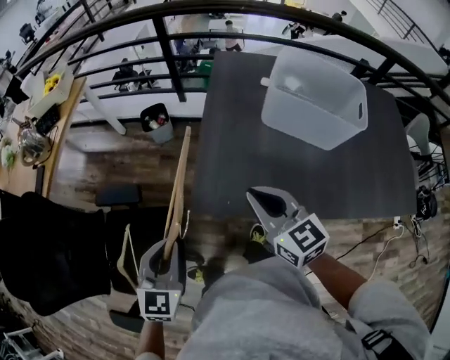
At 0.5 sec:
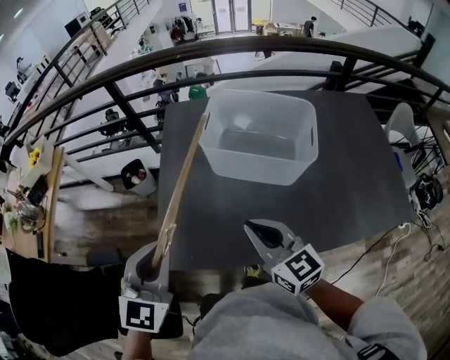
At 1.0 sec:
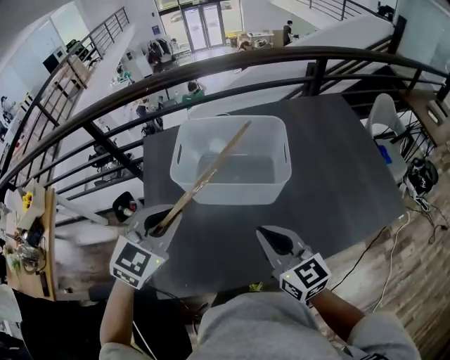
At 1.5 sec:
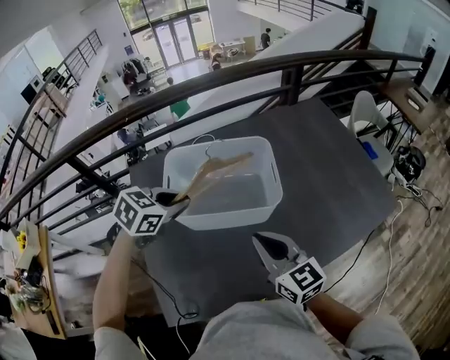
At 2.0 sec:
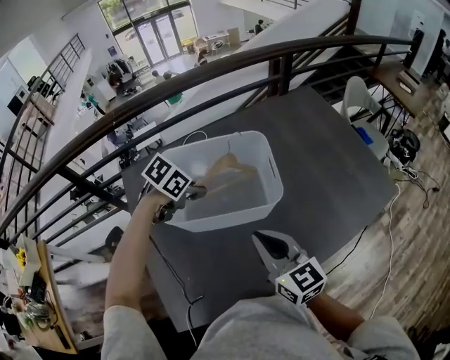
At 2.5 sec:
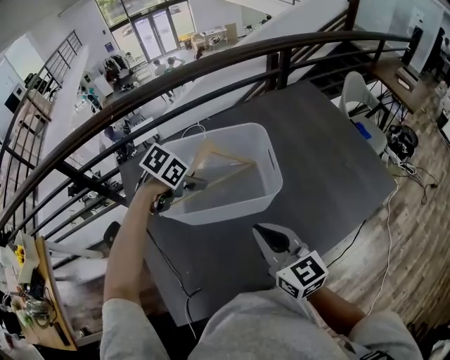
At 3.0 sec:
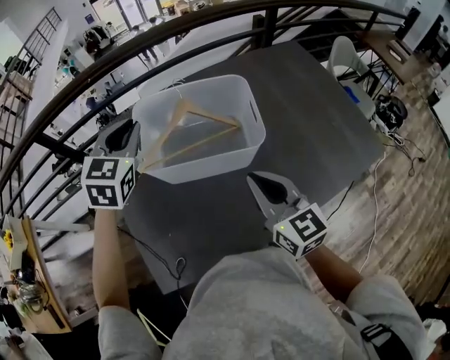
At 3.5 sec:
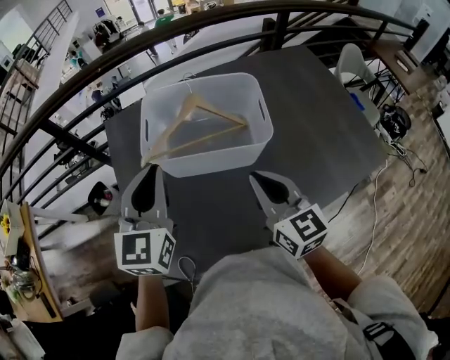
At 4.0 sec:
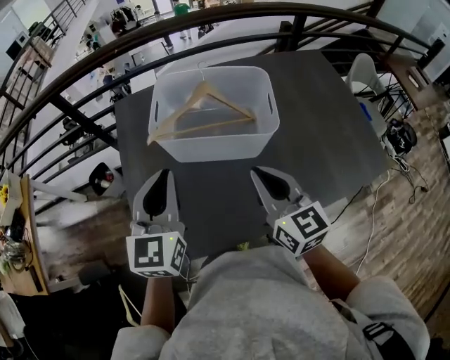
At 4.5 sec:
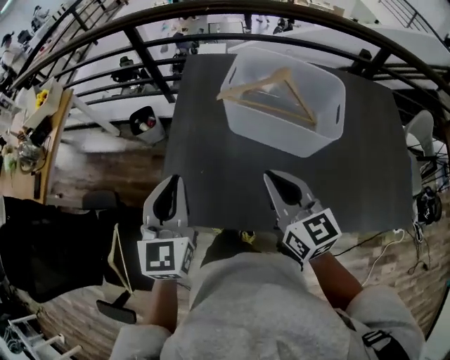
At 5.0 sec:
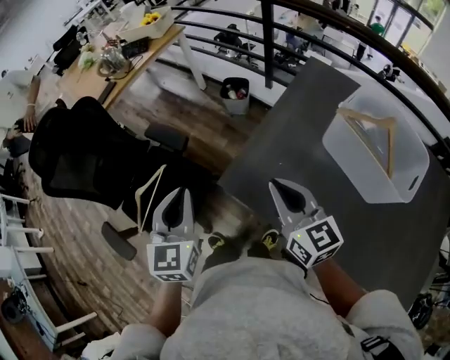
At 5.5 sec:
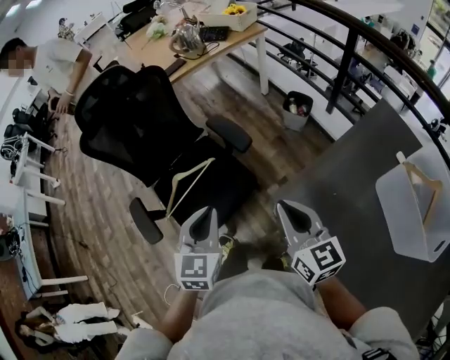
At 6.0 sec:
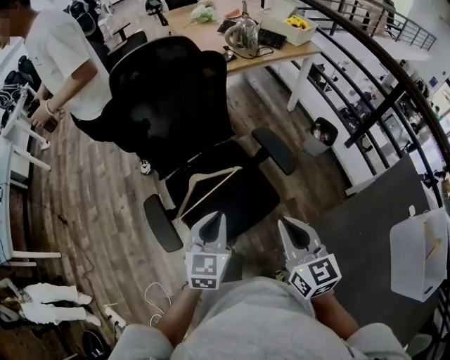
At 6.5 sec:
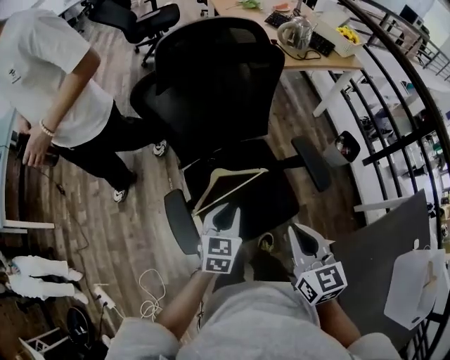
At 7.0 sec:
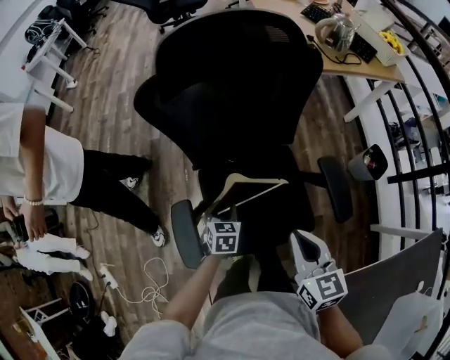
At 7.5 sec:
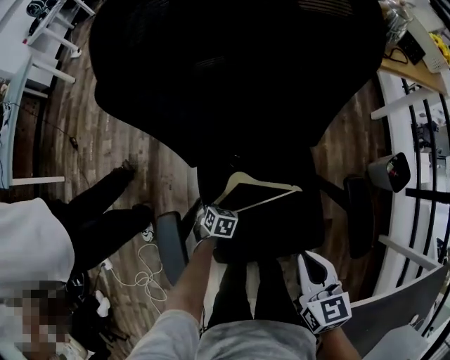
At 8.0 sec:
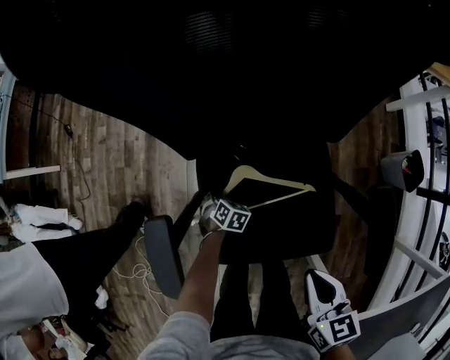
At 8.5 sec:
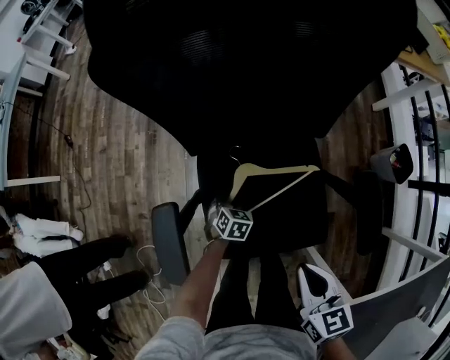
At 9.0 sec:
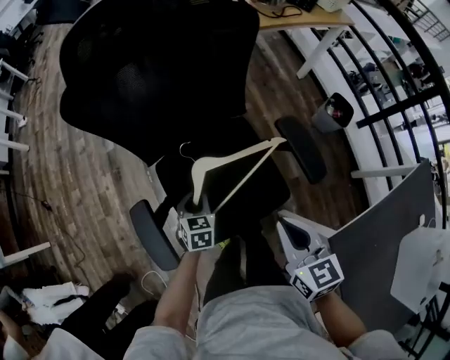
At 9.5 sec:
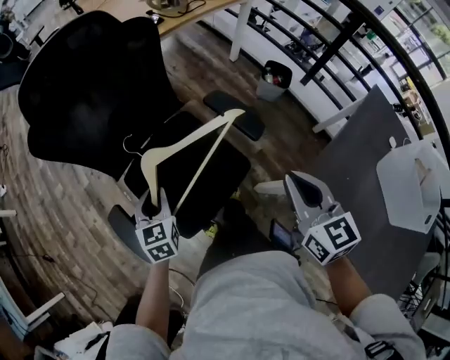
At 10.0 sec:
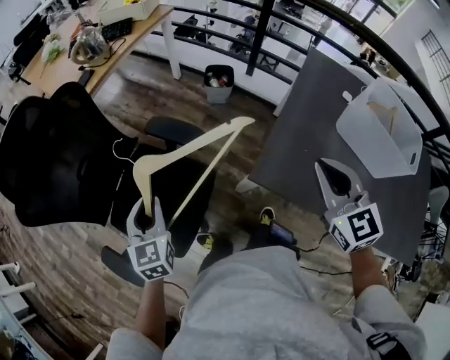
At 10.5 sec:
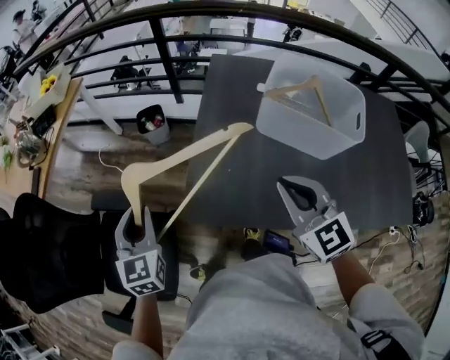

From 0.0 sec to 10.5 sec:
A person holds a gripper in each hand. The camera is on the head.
From 0.0 sec to 2.0 sec: The left gripper travels upward and back again, some 10 cm each way, and tilts its fingers roughly 30 degrees downward; the right gripper shifts by some 35 cm, and swivels approximately 40 degrees.
From 2.0 sec to 4.0 sec: The left gripper moves approximately 25 cm, tips its fingers upward by roughly 50 degrees, and opens, then closes once more.
From 4.0 sec to 6.5 sec: The two grippers travel together, about 80 cm. The right gripper rotates roughly 80 degrees. Meanwhile the left gripper changes its angle by roughly 80 degrees.
From 6.5 sec to 8.5 sec: The right gripper travels downward by roughly 20 cm, and turns by about 20 degrees. The left gripper moves downward, about 35 cm, tilts its fingers roughly 30 degrees downward, and opens, then closes once more.
From 8.5 sec to 10.5 sec: The pair of grippers is taken roughly 60 cm. The right gripper swivels approximately 70 degrees; the left gripper tips its fingers upward by approximately 40 degrees.

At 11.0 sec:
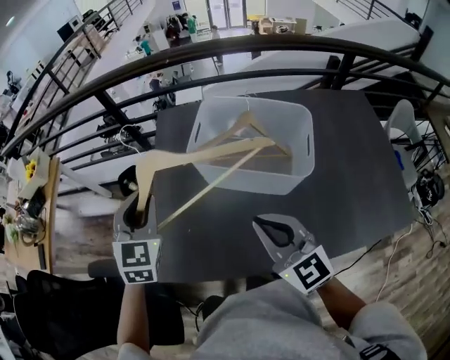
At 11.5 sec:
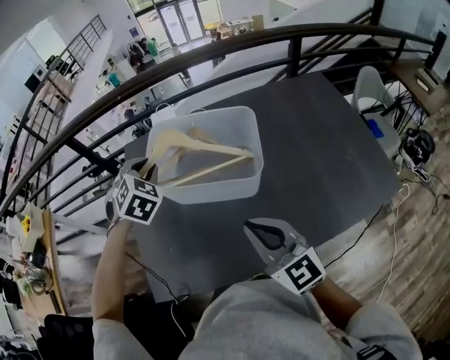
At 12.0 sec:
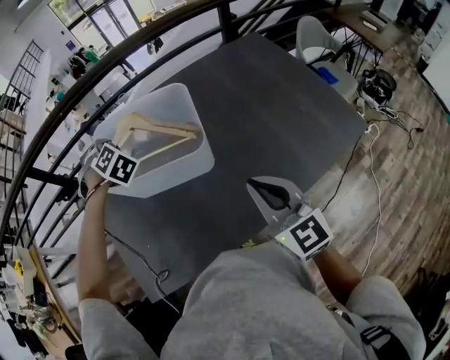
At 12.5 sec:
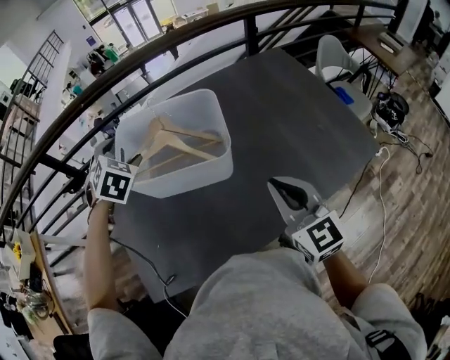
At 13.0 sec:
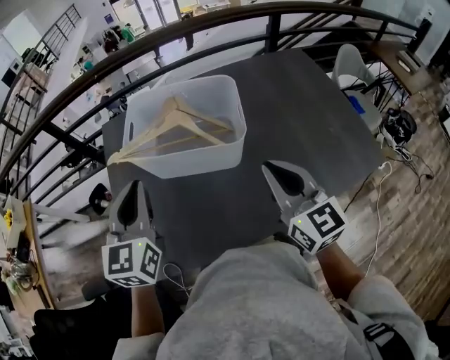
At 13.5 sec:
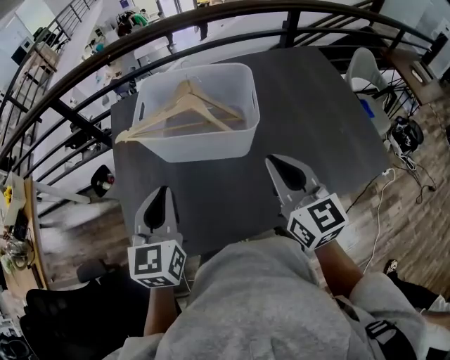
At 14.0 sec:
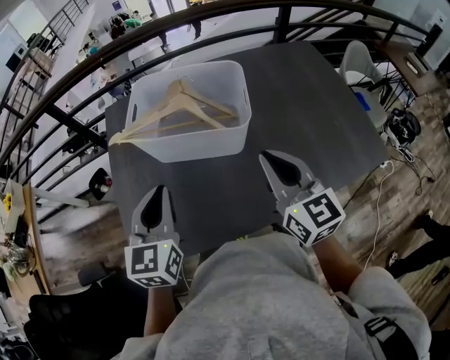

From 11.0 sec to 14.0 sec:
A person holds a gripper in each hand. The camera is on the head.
From 11.0 sec to 12.5 sec: The right gripper is displaced to the right by about 15 cm, and changes its angle by about 30 degrees, while the left gripper shifts roughly 20 cm to the right and forward, swivels roughly 40 degrees, and opens its fingers.
From 12.5 sec to 14.0 sec: The left gripper is displaced backward by roughly 20 cm, rolls counterclockwise, seen from behind, by approximately 50 degrees, and closes its fingers; the right gripper goes roughly 5 cm to the left.

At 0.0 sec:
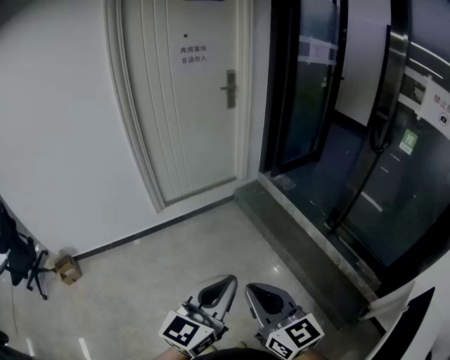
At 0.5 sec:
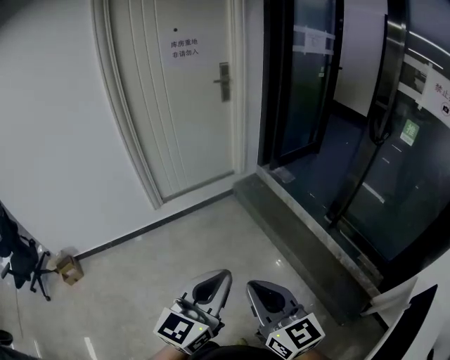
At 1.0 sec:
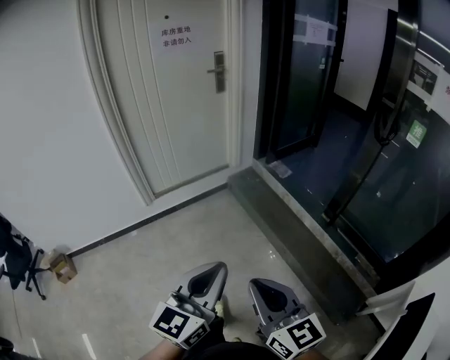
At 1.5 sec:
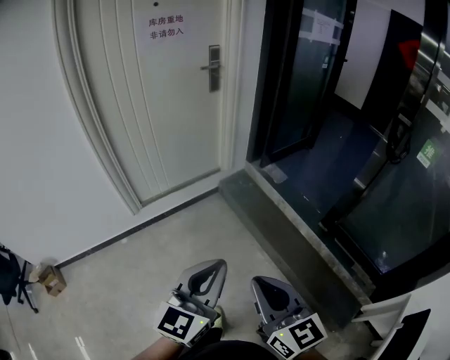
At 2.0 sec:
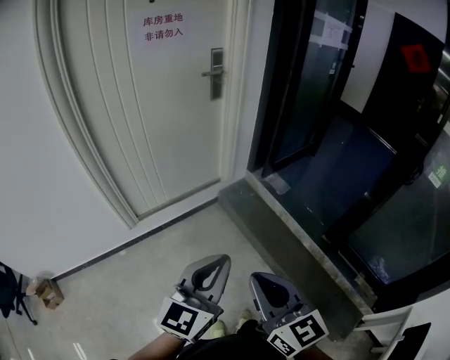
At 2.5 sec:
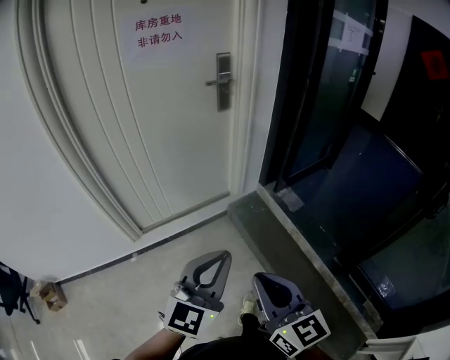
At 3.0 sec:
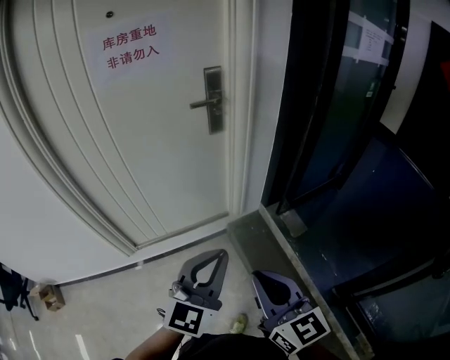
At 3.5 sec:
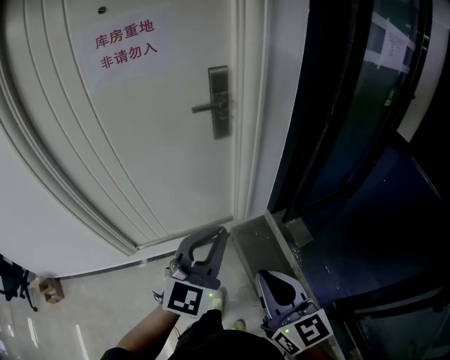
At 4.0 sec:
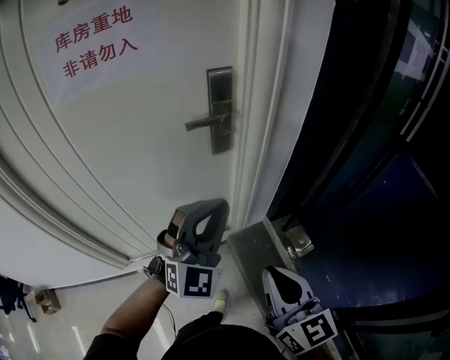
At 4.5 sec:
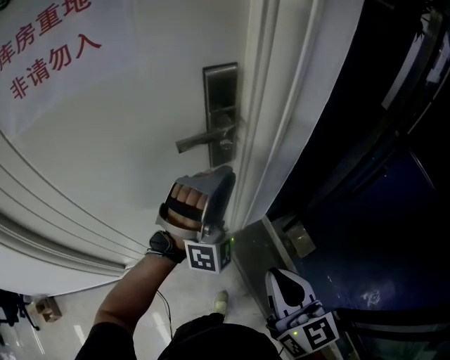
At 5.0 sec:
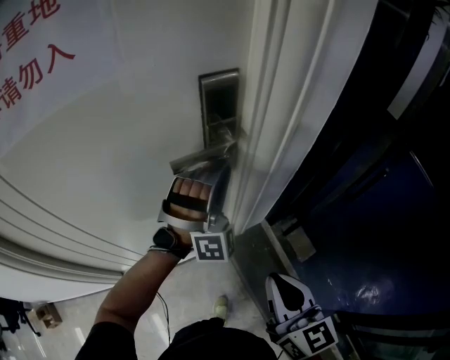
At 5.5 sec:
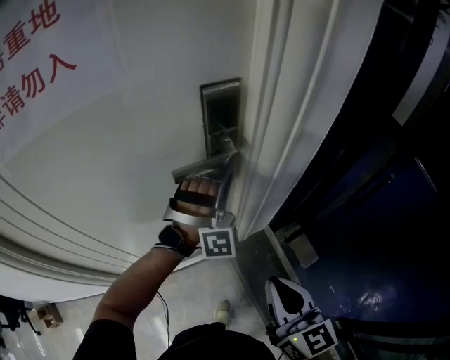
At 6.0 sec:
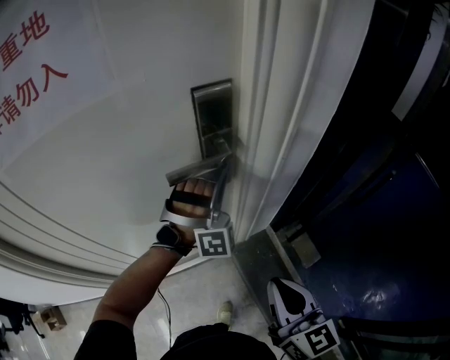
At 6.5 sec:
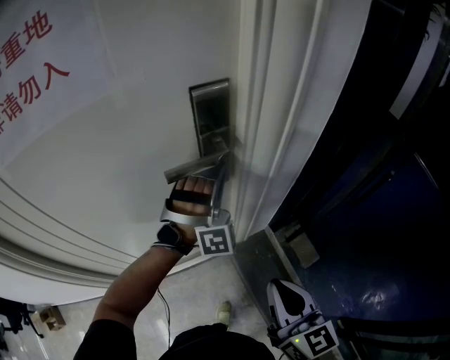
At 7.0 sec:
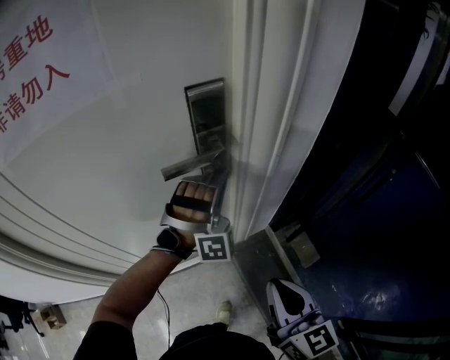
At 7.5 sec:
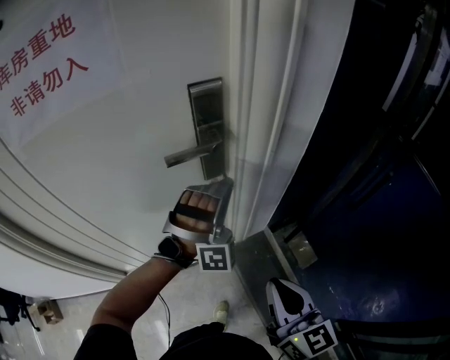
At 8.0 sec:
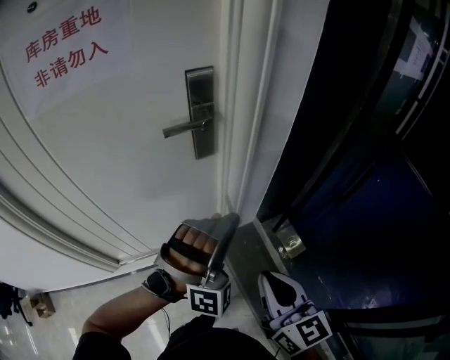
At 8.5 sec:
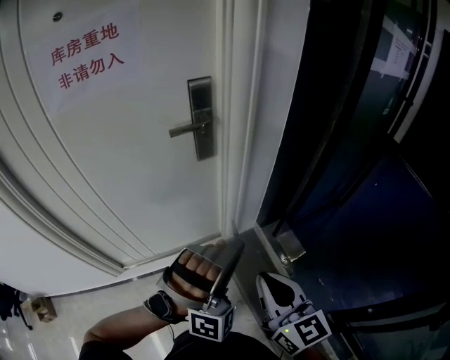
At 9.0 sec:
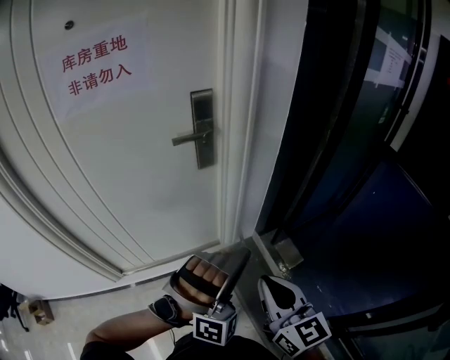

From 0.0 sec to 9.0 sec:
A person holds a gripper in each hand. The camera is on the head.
From 0.0 sec to 2.0 sec: The two grippers go some 40 cm forward.
From 2.0 sec to 4.5 sec: The pair of grippers is taken forward, approximately 70 cm. The left gripper rotates around the line of its fingers by about 90 degrees, clockwise from behind, and opens up.
From 4.5 sec to 7.0 sec: The left gripper is displaced forward by about 10 cm, and closes its fingers.
From 7.0 sec to 9.0 sec: The left gripper travels backward by roughly 40 cm; the right gripper travels backward by some 20 cm.

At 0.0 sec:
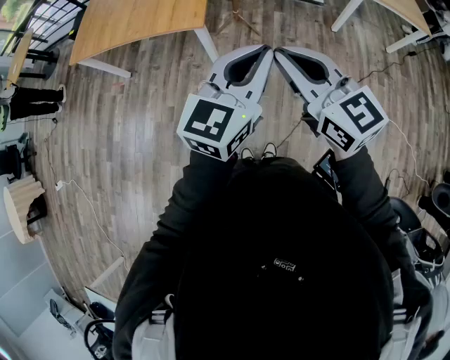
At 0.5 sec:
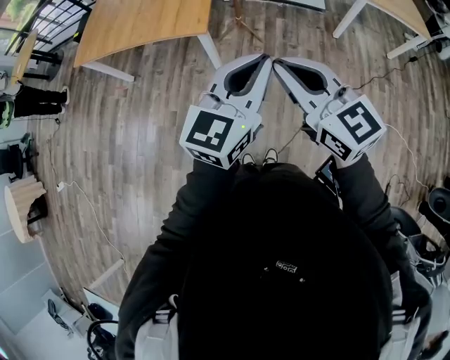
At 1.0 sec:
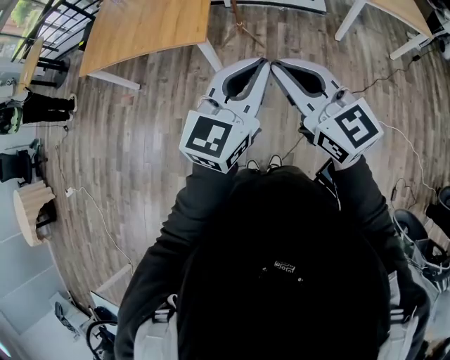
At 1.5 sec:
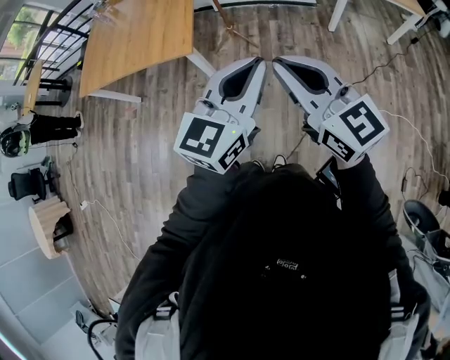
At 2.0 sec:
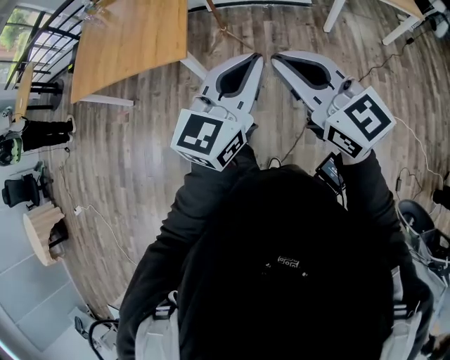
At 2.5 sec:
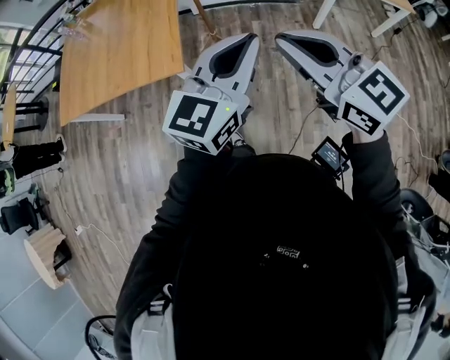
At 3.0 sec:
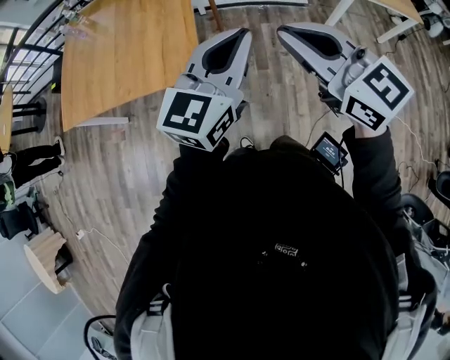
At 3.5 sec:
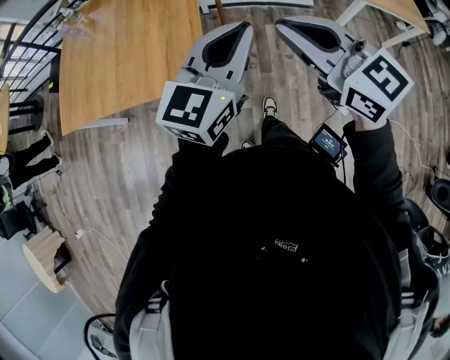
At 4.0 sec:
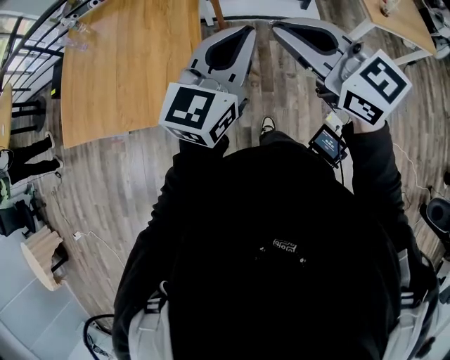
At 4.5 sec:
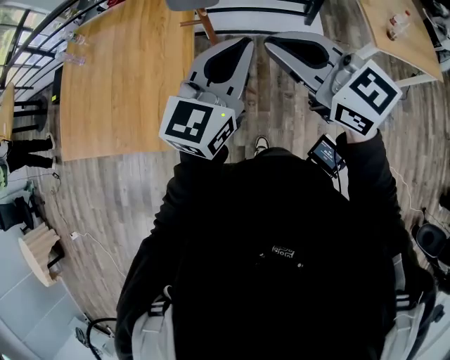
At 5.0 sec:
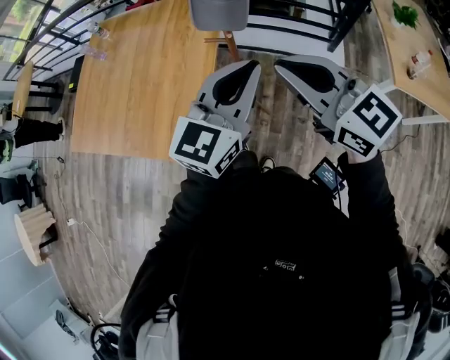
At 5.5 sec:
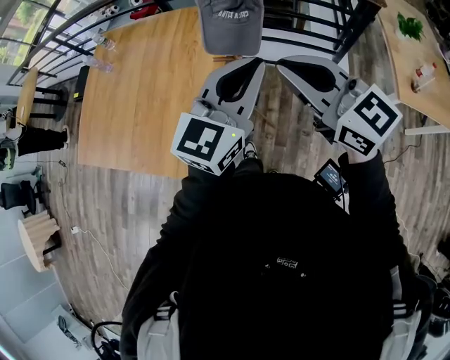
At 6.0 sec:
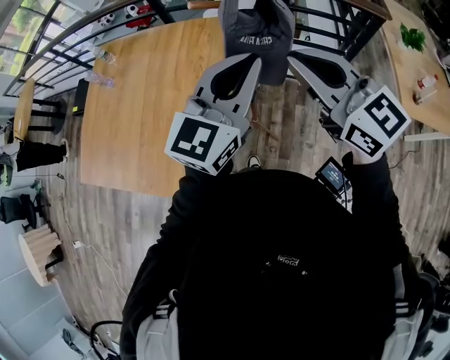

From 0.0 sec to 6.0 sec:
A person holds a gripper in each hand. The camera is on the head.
From 0.0 sec to 2.0 sec: The grippers both shift to the right and forward by some 10 cm.
From 2.0 sec to 4.0 sec: The grippers both shift forward by approximately 40 cm.
From 4.0 sec to 6.0 sec: Both grippers travel together forward, approximately 25 cm.
